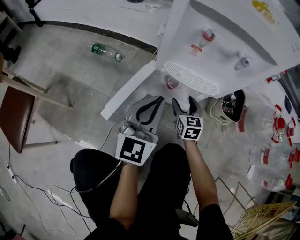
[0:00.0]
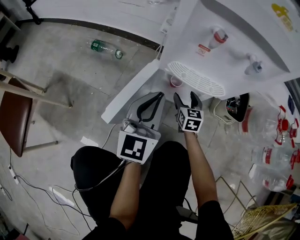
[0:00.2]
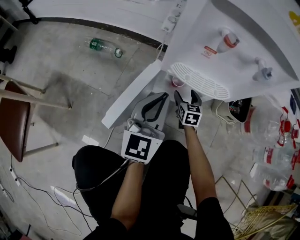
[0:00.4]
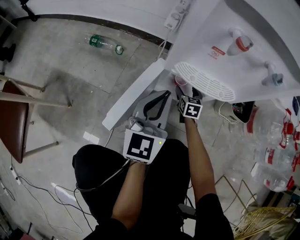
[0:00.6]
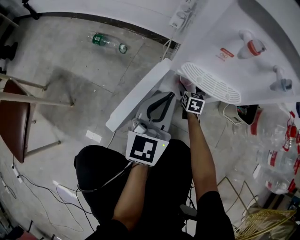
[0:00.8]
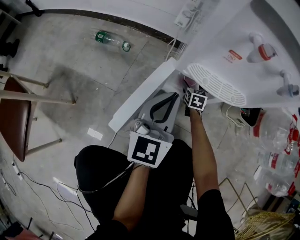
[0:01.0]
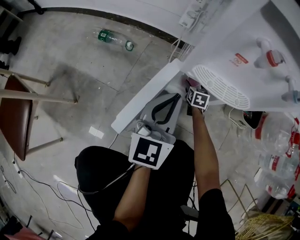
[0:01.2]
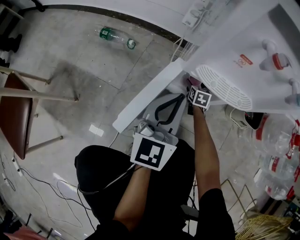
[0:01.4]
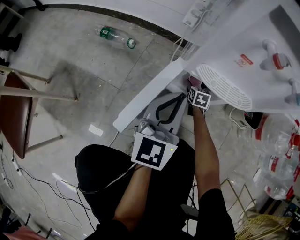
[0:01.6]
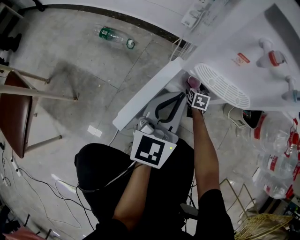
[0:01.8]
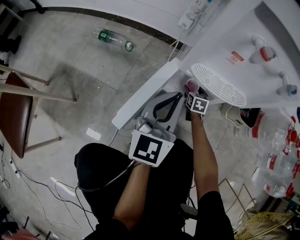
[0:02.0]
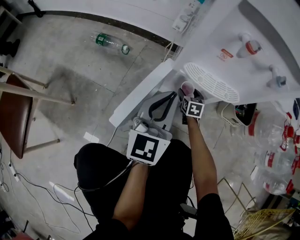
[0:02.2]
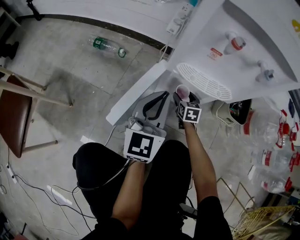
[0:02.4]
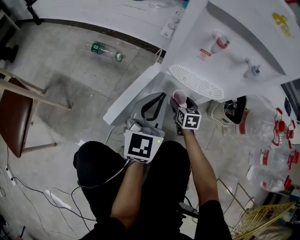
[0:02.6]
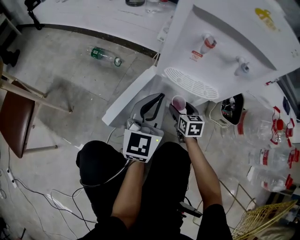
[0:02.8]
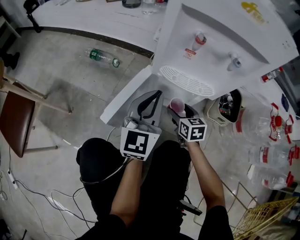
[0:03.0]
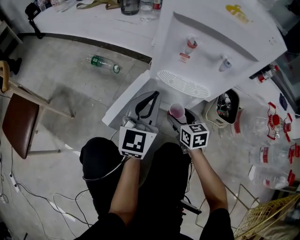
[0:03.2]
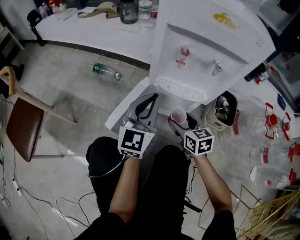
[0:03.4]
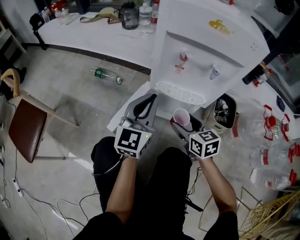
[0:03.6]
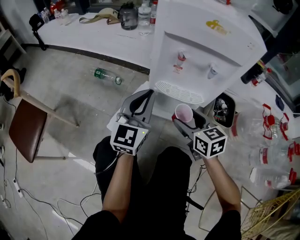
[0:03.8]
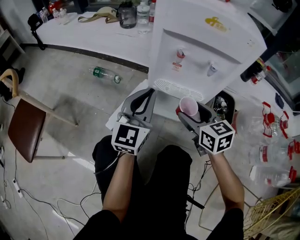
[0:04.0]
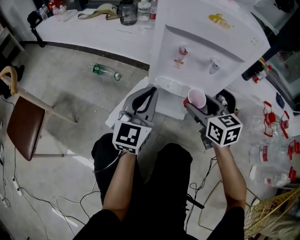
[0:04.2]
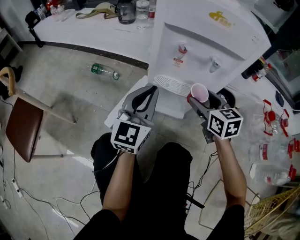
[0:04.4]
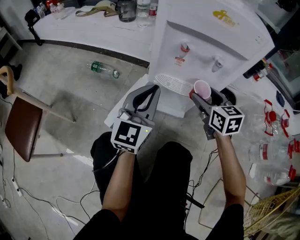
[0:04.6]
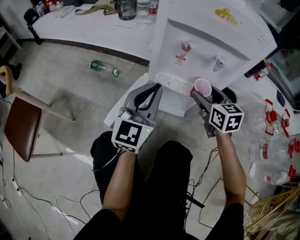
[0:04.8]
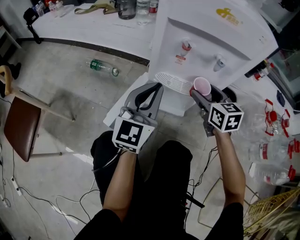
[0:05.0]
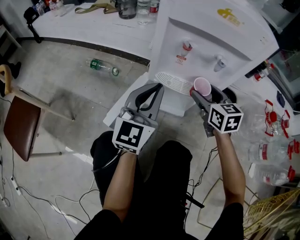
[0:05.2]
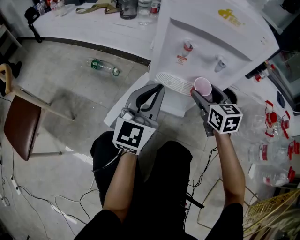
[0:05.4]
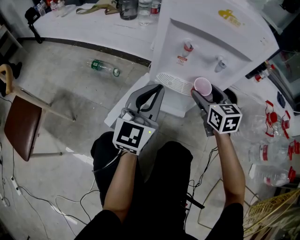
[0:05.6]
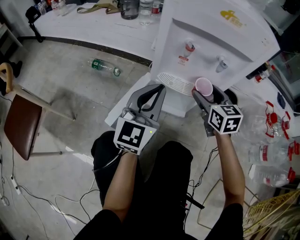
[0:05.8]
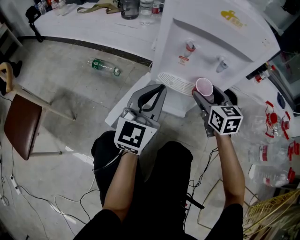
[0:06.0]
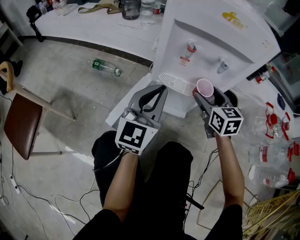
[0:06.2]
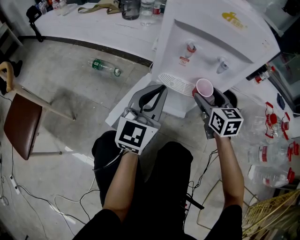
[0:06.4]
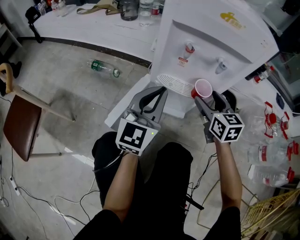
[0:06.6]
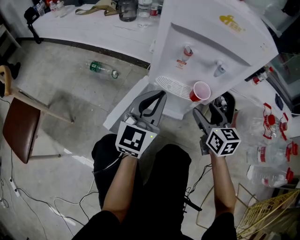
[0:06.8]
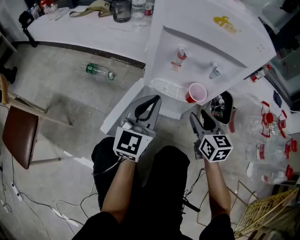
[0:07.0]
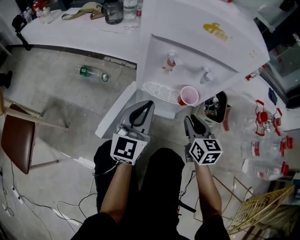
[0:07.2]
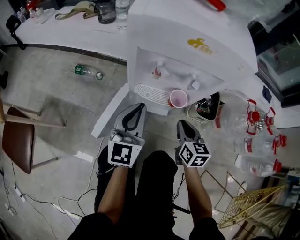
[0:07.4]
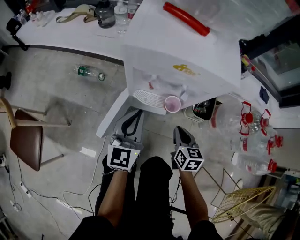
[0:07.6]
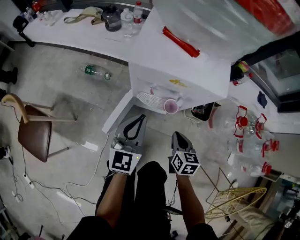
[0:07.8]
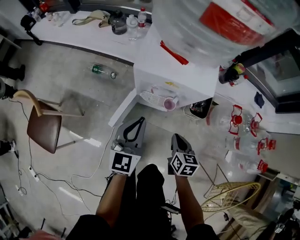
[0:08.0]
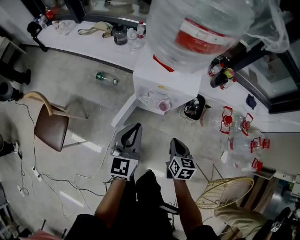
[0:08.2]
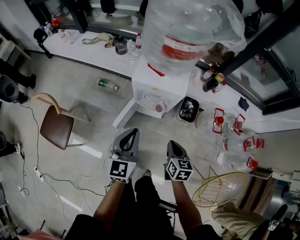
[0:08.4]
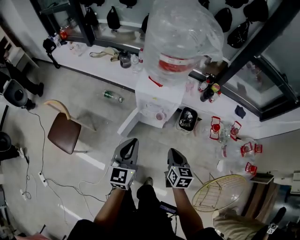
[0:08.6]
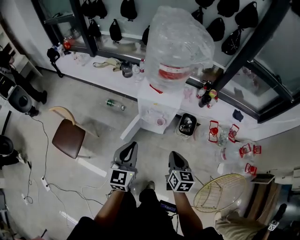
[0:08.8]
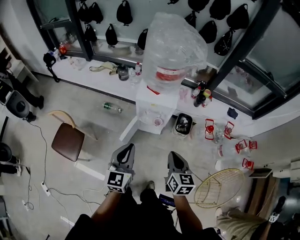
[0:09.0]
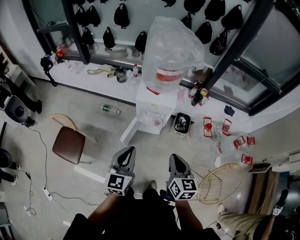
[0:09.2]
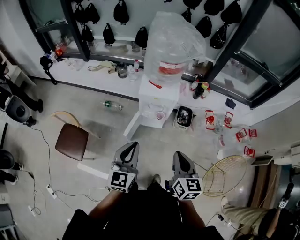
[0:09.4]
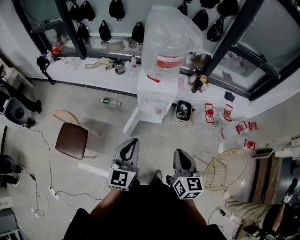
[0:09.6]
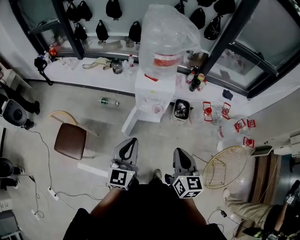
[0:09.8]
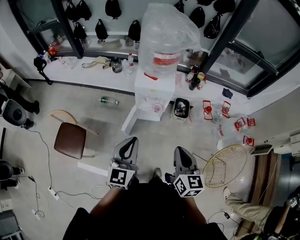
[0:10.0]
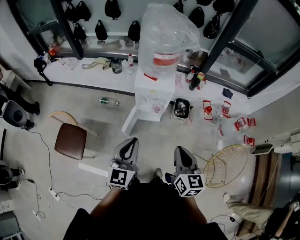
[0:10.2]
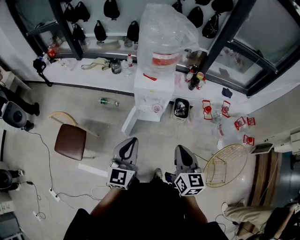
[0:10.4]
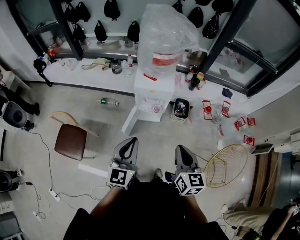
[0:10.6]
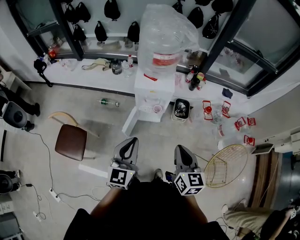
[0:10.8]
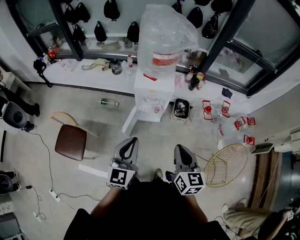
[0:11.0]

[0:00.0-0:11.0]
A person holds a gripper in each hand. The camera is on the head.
0:00.0 to 0:01.6: The left gripper travels forward and downward by some 10 cm, while the right gripper is displaced downward and forward by approximately 25 cm.
0:01.6 to 0:03.2: The left gripper travels upward by some 10 cm, while the right gripper travels upward and backward by approximately 30 cm, and swivels about 20 degrees.
0:03.2 to 0:04.8: The left gripper travels upward by some 5 cm. Meanwhile the right gripper is displaced upward and to the right by approximately 20 cm.
0:04.8 to 0:06.2: The two grippers keep their place.
0:06.2 to 0:07.8: The right gripper goes approximately 15 cm backward and upward, swivels roughly 30 degrees, and closes up. The left gripper is displaced upward by about 15 cm.
0:07.8 to 0:09.4: Both grippers move upward and backward, some 60 cm. The right gripper changes its angle by about 20 degrees.
0:09.4 to 0:11.0: There are only small adjustments of the grippers.

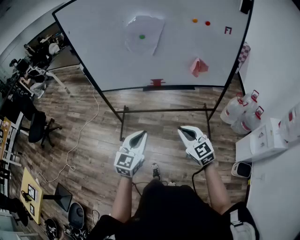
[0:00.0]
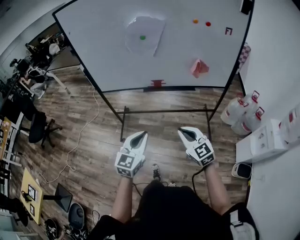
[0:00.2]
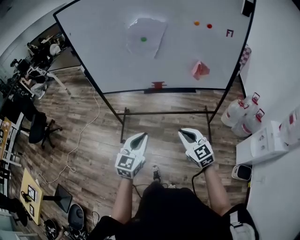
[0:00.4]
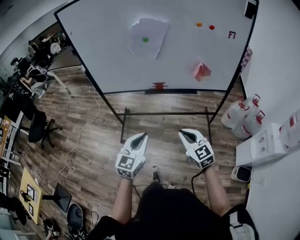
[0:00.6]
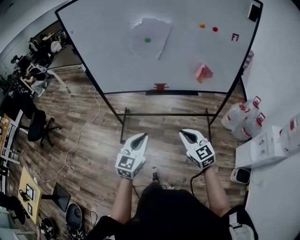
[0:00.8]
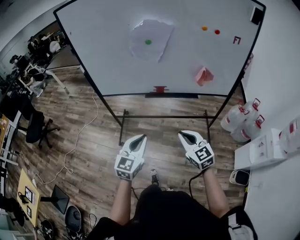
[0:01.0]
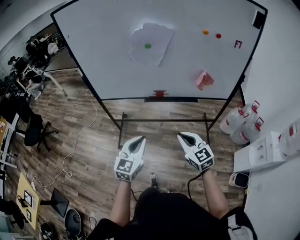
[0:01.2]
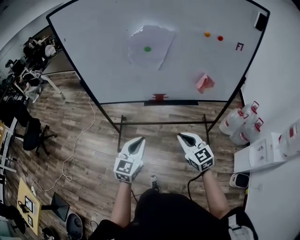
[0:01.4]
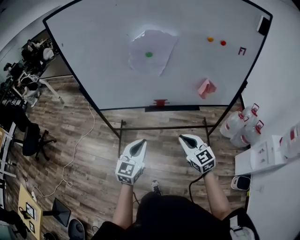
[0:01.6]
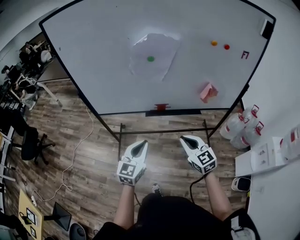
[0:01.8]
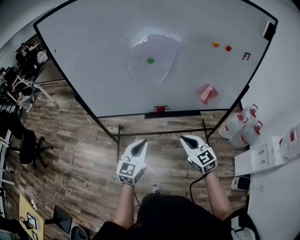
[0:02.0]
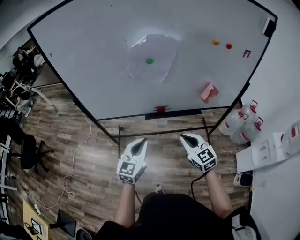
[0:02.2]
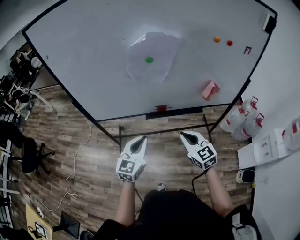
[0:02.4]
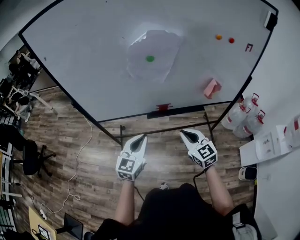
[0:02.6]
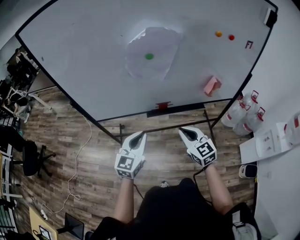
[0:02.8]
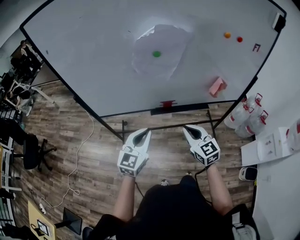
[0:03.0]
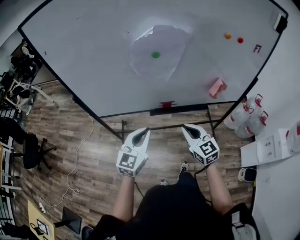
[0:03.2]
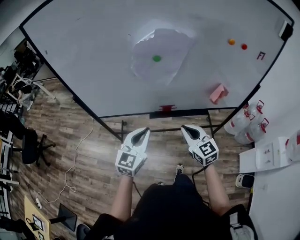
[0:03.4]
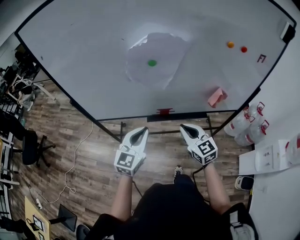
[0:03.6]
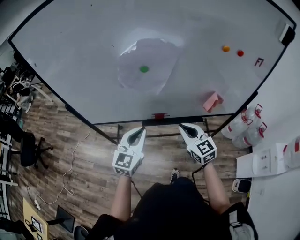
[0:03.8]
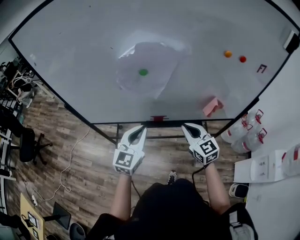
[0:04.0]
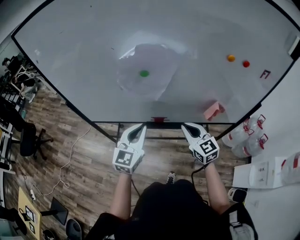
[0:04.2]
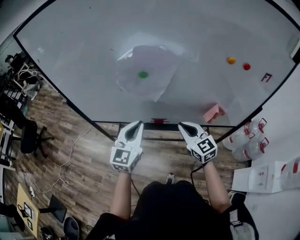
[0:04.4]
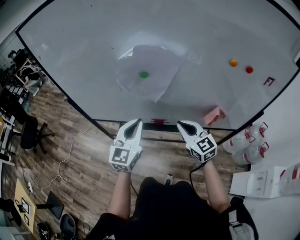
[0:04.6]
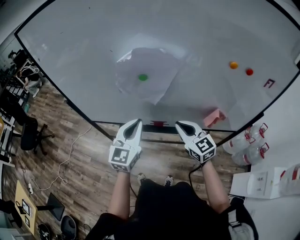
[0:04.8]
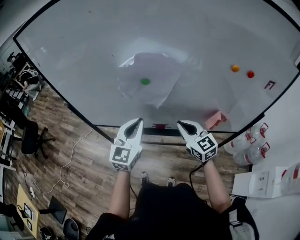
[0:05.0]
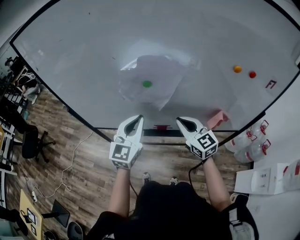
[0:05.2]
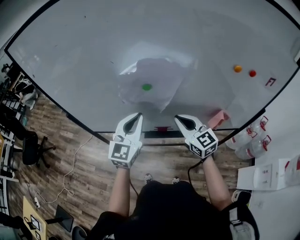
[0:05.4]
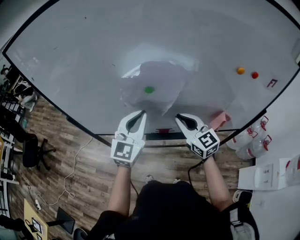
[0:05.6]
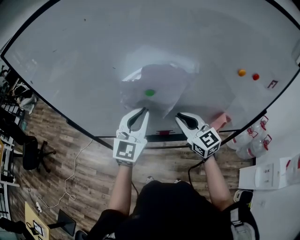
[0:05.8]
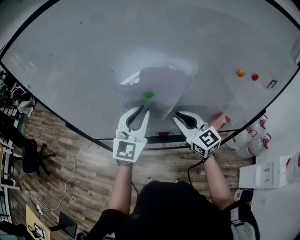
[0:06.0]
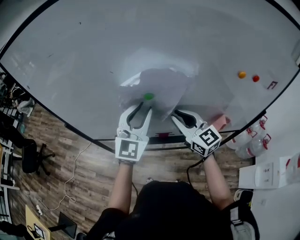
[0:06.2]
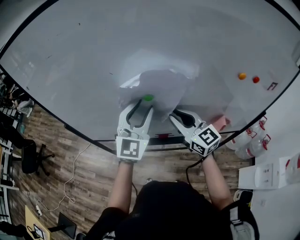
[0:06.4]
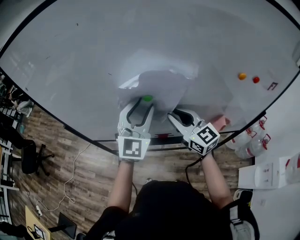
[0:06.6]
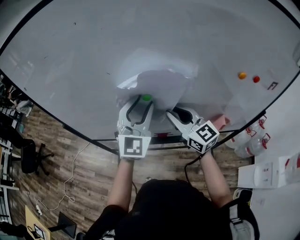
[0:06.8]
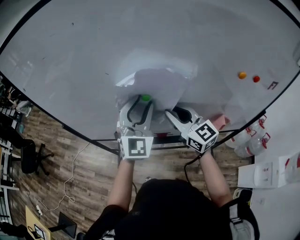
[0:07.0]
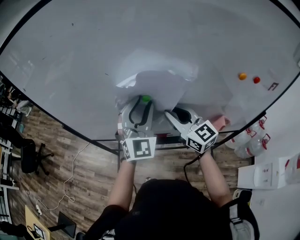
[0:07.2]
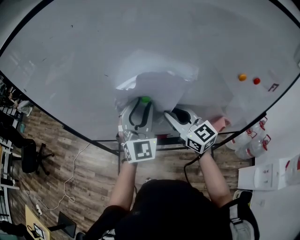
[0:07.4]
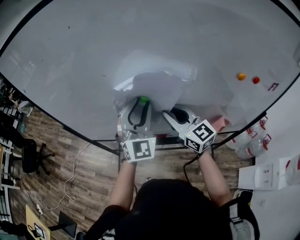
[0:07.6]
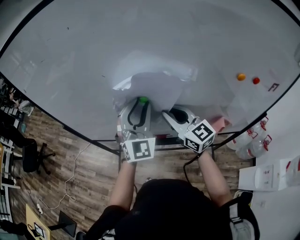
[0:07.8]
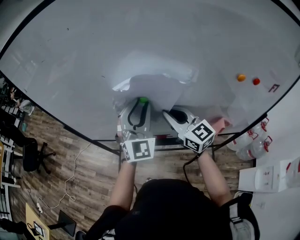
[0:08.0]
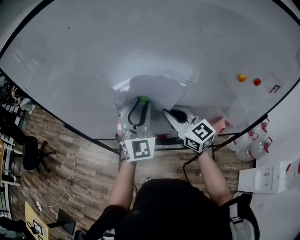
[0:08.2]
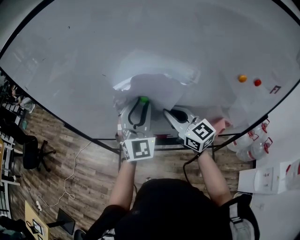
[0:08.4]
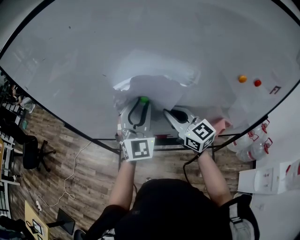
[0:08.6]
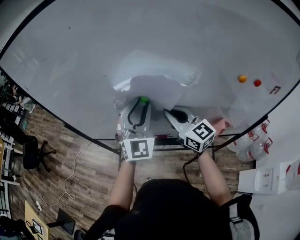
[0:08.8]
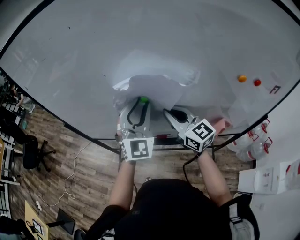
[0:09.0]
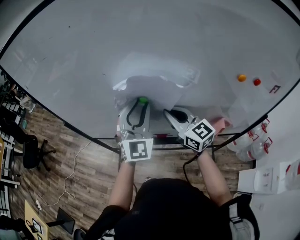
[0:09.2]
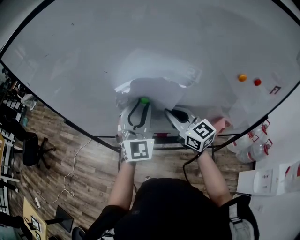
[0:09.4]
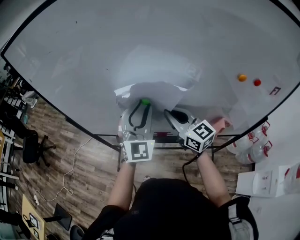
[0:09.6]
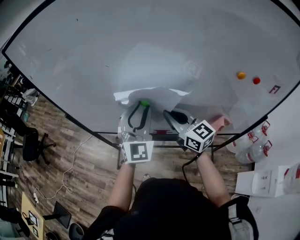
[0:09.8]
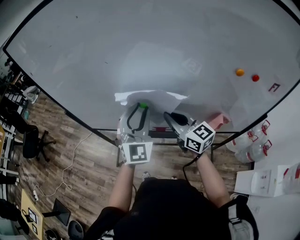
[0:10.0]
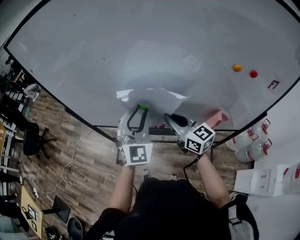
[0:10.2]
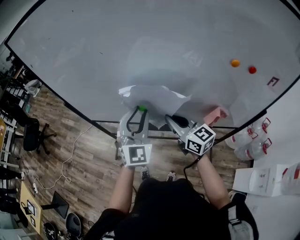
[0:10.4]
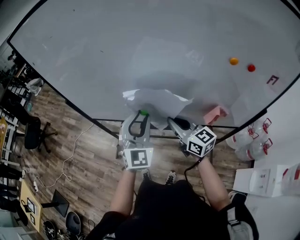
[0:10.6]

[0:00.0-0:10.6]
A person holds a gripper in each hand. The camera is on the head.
0:00.0 to 0:01.6: Both grippers travel together forward, approximately 15 cm.
0:01.6 to 0:03.0: The left gripper is displaced forward by about 15 cm, while the right gripper heads forward and to the left, covering roughly 15 cm.
0:03.0 to 0:04.6: The right gripper goes approximately 15 cm forward and to the right. Meanwhile the left gripper is displaced forward, to the right and upward by approximately 15 cm.
0:04.6 to 0:06.0: The two grippers go roughly 10 cm forward and upward.
0:06.0 to 0:07.6: The left gripper swivels approximately 20 degrees.
0:07.6 to 0:09.0: Neither gripper changes place.
0:09.0 to 0:10.6: Both grippers move backward and downward, some 15 cm.

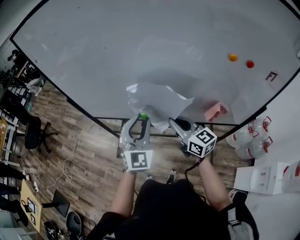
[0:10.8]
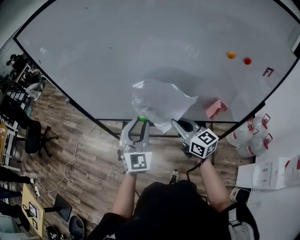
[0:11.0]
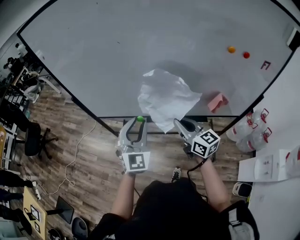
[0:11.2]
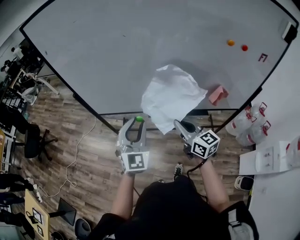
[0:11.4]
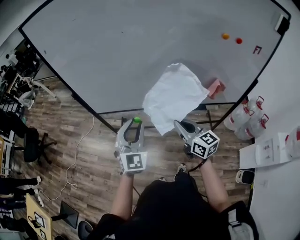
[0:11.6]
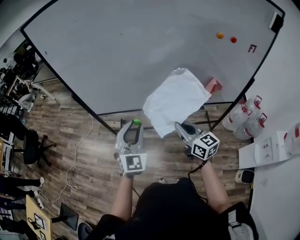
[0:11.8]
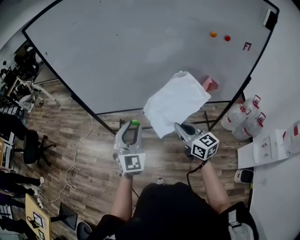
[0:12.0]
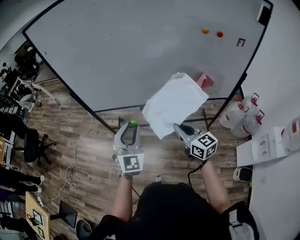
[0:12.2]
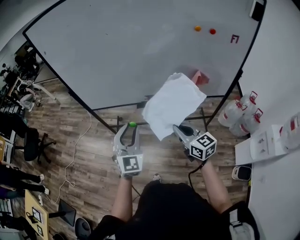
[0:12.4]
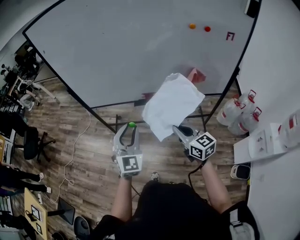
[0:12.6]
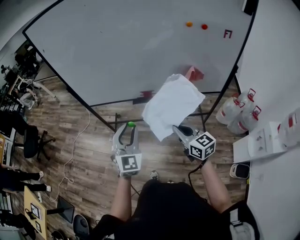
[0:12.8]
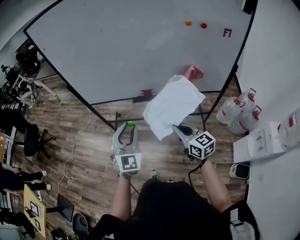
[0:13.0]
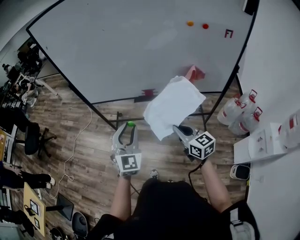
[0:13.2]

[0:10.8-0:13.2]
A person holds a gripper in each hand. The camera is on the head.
0:10.8 to 0:12.0: The right gripper is displaced backward by approximately 15 cm; the left gripper heads backward and to the left, covering some 20 cm.
0:12.0 to 0:13.2: The left gripper is displaced backward by approximately 10 cm; the right gripper shifts about 15 cm backward and to the right.
